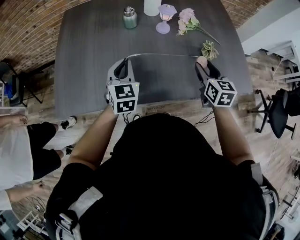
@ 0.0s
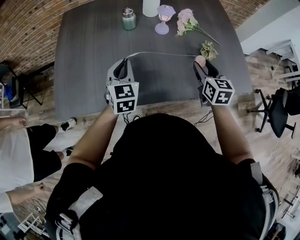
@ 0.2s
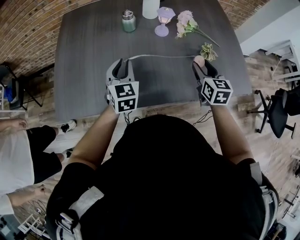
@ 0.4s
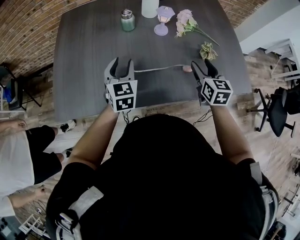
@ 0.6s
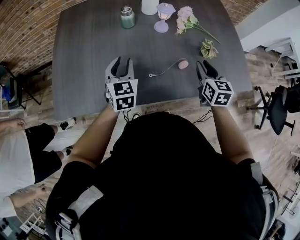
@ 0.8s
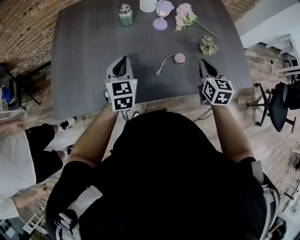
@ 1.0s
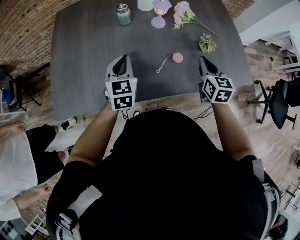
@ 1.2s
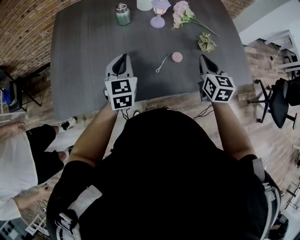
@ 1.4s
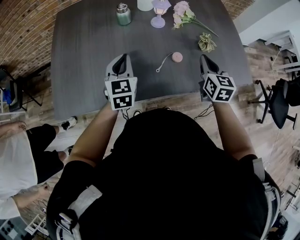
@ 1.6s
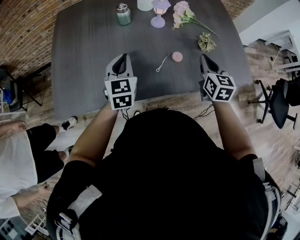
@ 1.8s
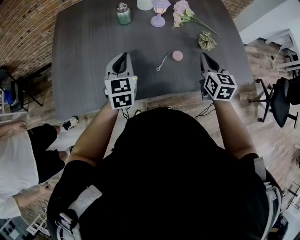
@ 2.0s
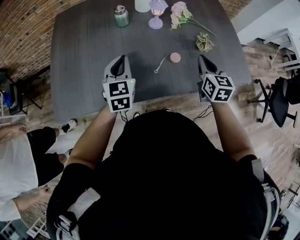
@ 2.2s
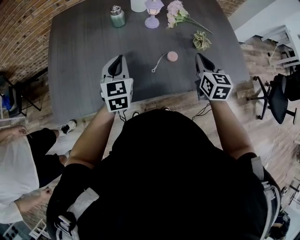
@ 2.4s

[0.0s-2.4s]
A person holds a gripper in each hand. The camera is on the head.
0.0s to 1.2s: The left gripper opens, then closes again; the right gripper closes up.
1.2s to 2.4s: The grippers make only small movements.

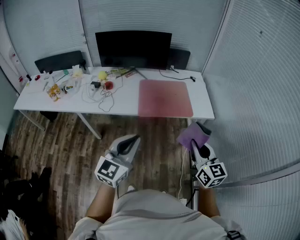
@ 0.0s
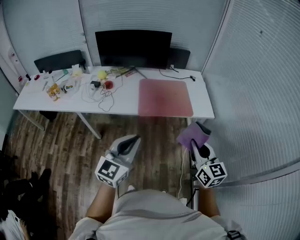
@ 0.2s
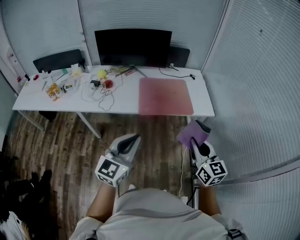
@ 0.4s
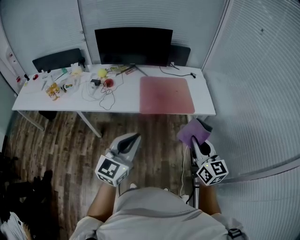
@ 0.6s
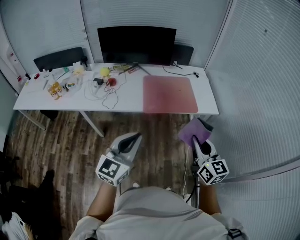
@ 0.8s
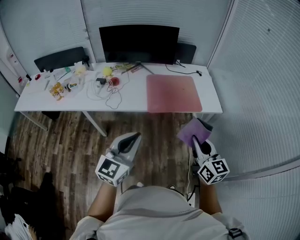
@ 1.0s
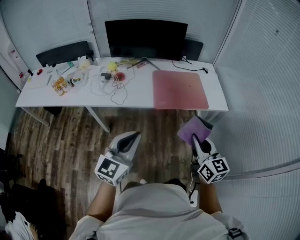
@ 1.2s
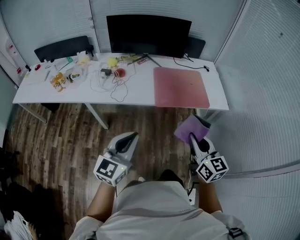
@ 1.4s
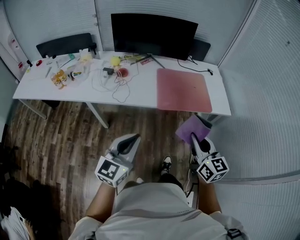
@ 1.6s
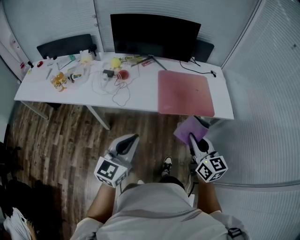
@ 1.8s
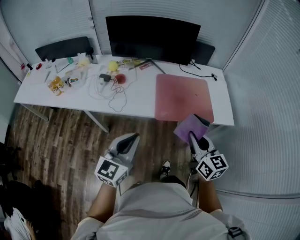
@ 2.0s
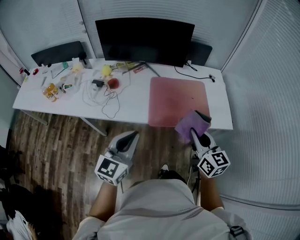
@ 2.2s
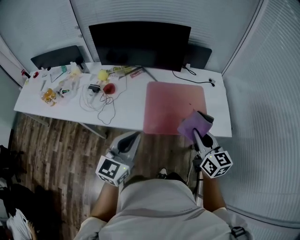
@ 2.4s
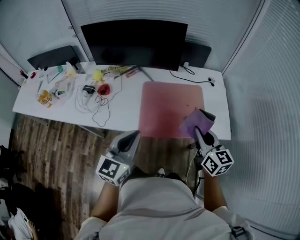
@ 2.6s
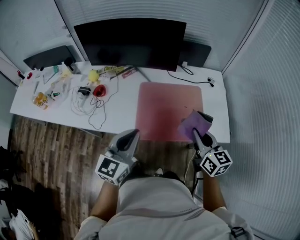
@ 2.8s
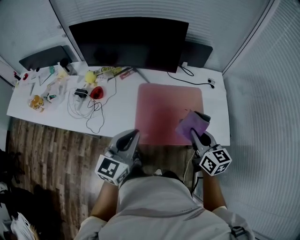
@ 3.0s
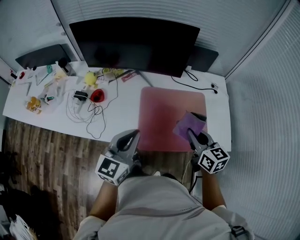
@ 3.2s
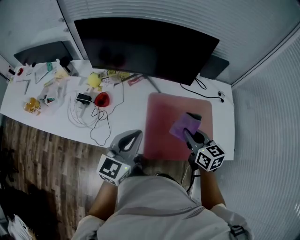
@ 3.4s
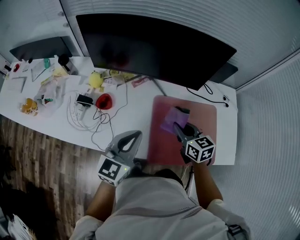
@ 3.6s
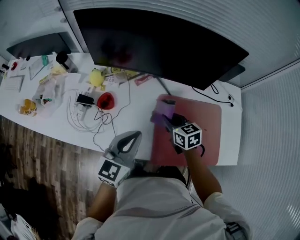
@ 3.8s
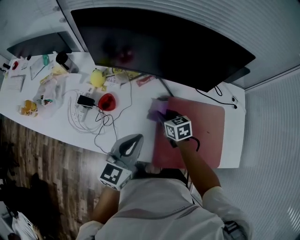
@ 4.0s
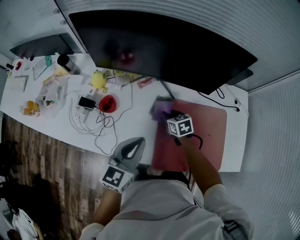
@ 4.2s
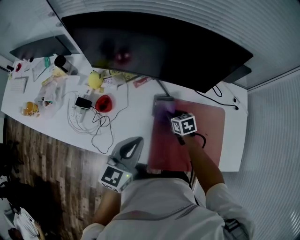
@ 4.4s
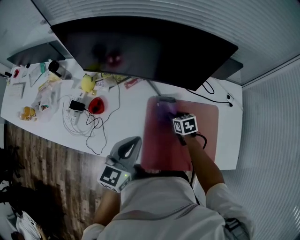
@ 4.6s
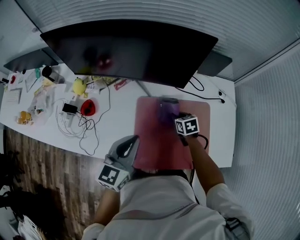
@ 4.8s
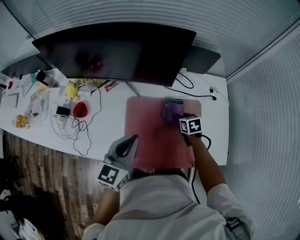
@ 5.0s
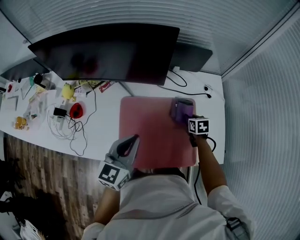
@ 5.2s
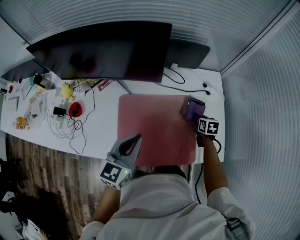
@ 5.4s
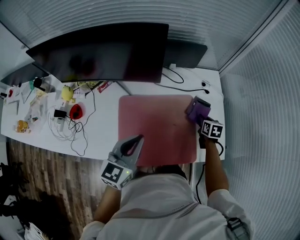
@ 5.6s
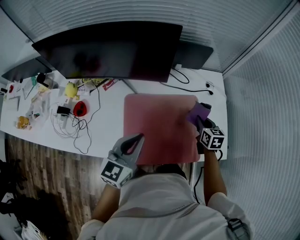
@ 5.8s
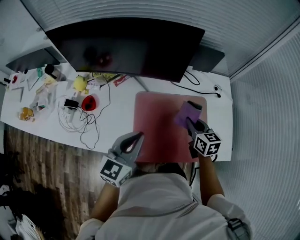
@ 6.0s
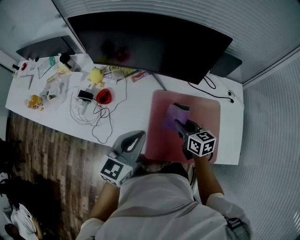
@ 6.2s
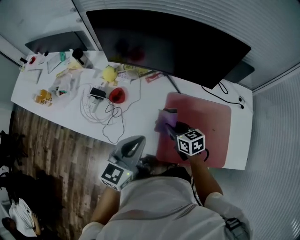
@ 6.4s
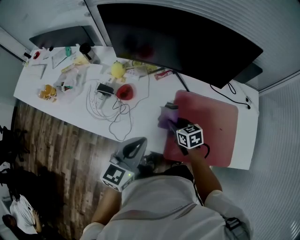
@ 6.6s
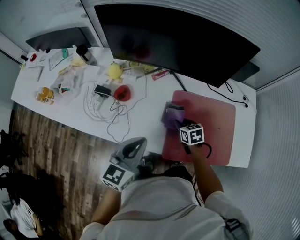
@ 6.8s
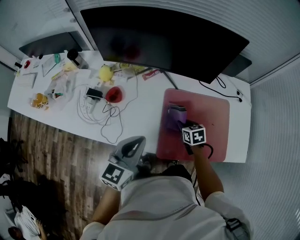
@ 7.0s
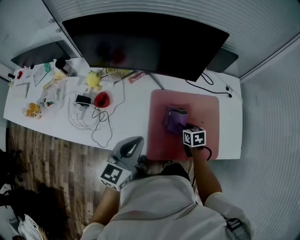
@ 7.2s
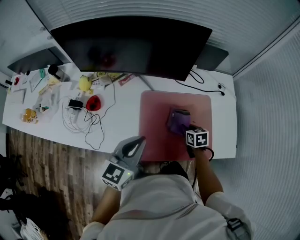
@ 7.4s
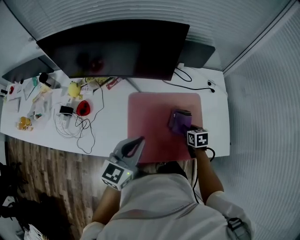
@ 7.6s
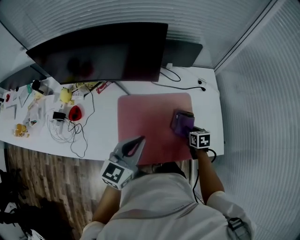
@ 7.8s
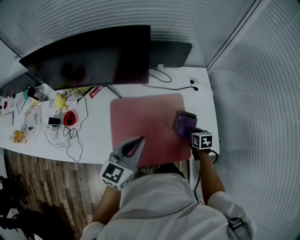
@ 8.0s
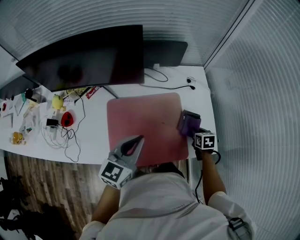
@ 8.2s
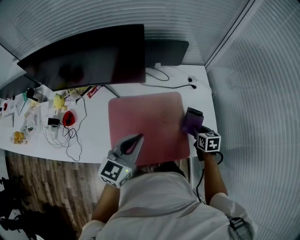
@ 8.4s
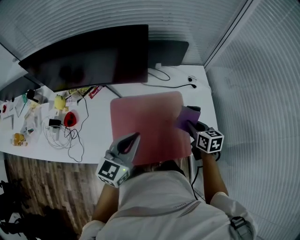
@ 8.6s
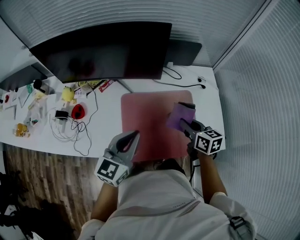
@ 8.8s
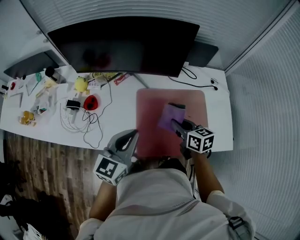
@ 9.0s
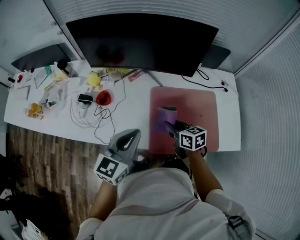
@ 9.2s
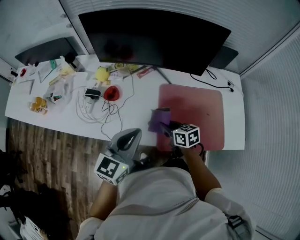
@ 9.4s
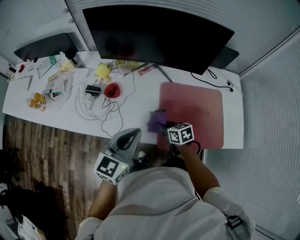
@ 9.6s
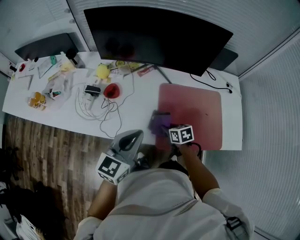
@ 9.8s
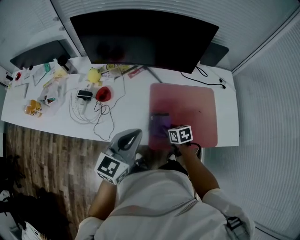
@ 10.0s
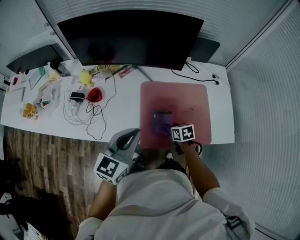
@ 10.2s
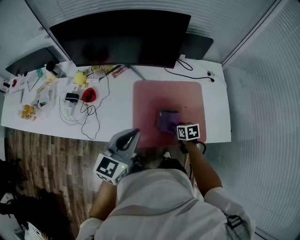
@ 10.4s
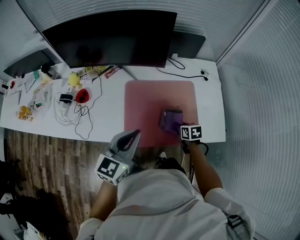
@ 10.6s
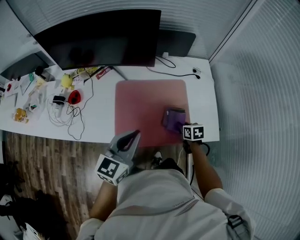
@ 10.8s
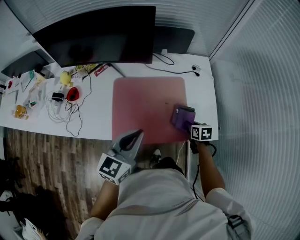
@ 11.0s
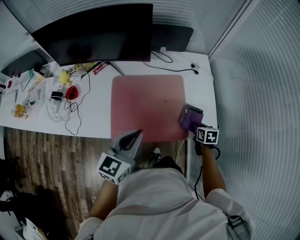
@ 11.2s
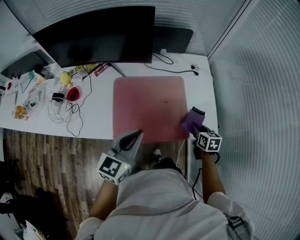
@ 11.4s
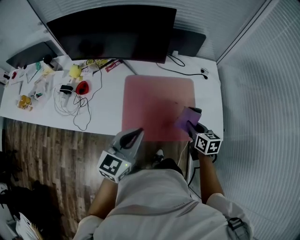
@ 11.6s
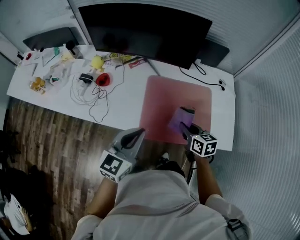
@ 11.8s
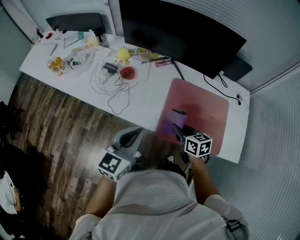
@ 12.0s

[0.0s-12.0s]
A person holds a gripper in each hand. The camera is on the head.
0.0s to 1.6s: The grippers both shift to the left by approximately 15 cm.
1.6s to 3.0s: The grippers both shift forward and to the right by about 40 cm.
3.0s to 4.4s: The left gripper travels forward and to the left by roughly 20 cm; the right gripper shifts approximately 40 cm forward, downward and to the left, and points its fingers some 30 degrees further downward.
4.4s to 6.0s: The left gripper is displaced to the right by some 10 cm. Meanwhile the right gripper goes roughly 25 cm to the right and upward, and rotates about 30 degrees.
6.0s to 7.6s: The right gripper travels downward by roughly 15 cm, reaches approximately 30 cm to the left, then returns, and rotates about 20 degrees. The left gripper reaches about 20 cm to the left, then returns.
7.6s to 9.0s: The right gripper is displaced upward and to the left by roughly 20 cm, and turns by approximately 30 degrees. Meanwhile the left gripper goes about 5 cm to the left.
9.0s to 10.4s: The left gripper travels backward by roughly 5 cm, and moves about 15 cm to the left and comes back. Meanwhile the right gripper travels downward by some 15 cm, reaches approximately 20 cm to the left, then returns, and changes its angle by about 20 degrees.
10.4s to 12.0s: The right gripper shifts by roughly 20 cm, and swivels about 30 degrees, while the left gripper ends up roughly 15 cm from where it was.

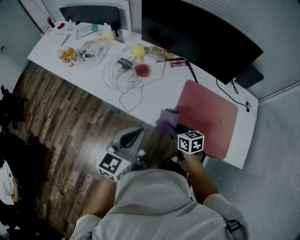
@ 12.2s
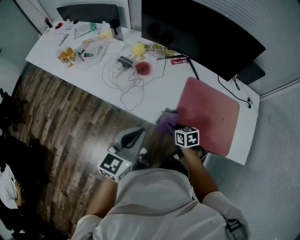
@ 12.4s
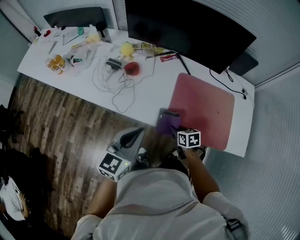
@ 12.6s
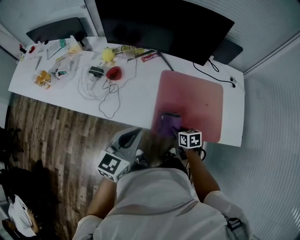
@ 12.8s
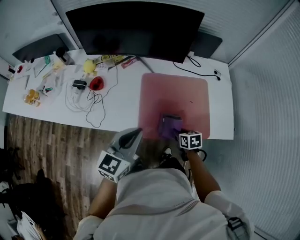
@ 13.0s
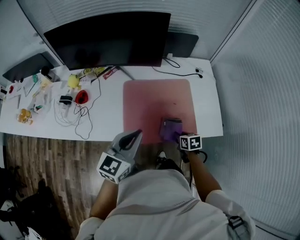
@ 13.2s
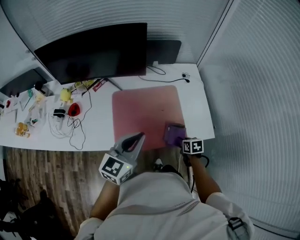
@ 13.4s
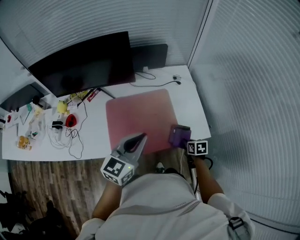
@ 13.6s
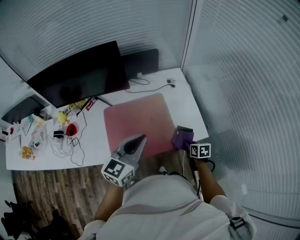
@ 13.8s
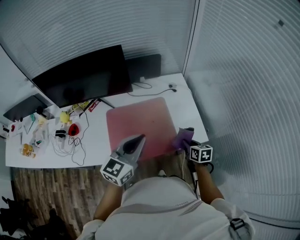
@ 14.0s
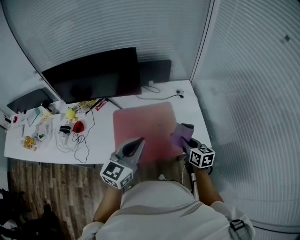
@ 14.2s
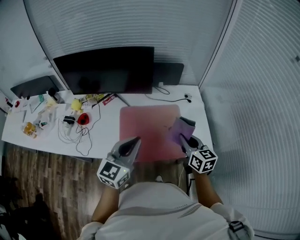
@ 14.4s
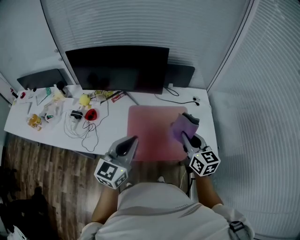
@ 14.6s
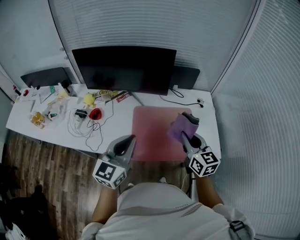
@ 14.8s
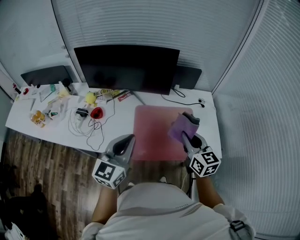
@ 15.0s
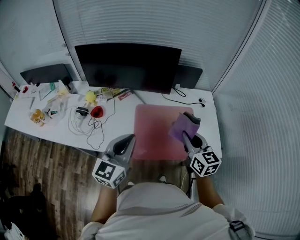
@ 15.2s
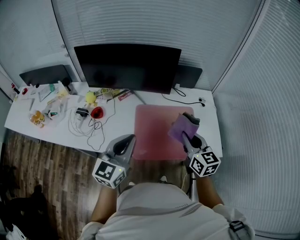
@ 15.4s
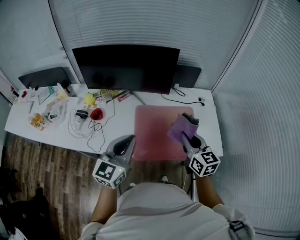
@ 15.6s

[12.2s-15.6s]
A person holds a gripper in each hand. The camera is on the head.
12.2s to 13.8s: The left gripper changes place by some 40 cm, and turns by approximately 40 degrees; the right gripper ends up some 50 cm from where it was, and changes its angle by roughly 50 degrees.
13.8s to 15.6s: The left gripper shifts some 25 cm to the left, and changes its angle by some 20 degrees. The right gripper goes some 40 cm upward and to the left, and tips its fingers upward by some 40 degrees.

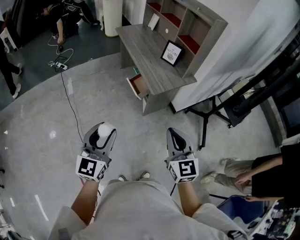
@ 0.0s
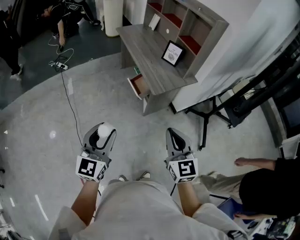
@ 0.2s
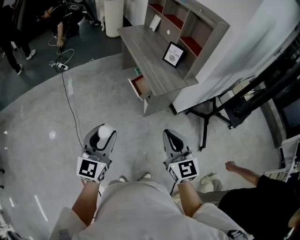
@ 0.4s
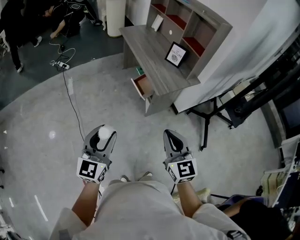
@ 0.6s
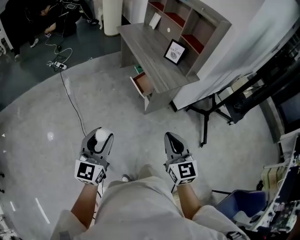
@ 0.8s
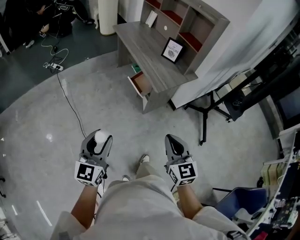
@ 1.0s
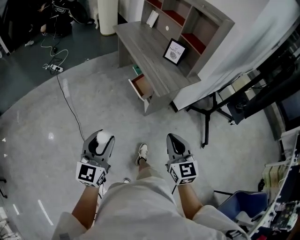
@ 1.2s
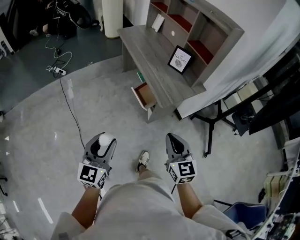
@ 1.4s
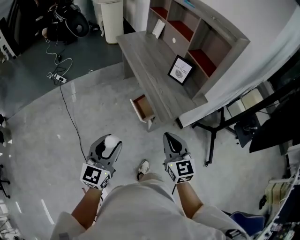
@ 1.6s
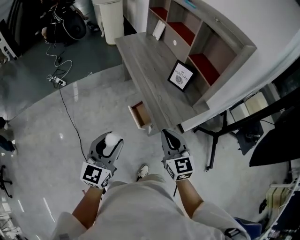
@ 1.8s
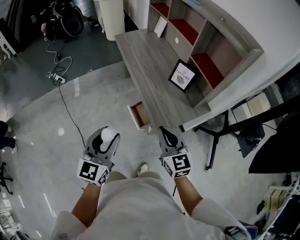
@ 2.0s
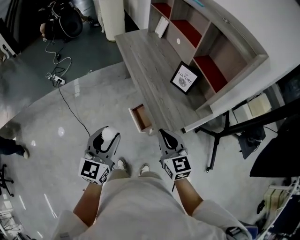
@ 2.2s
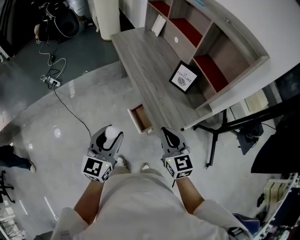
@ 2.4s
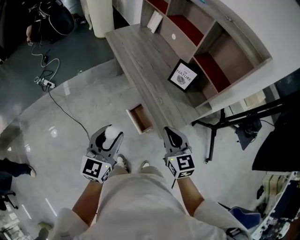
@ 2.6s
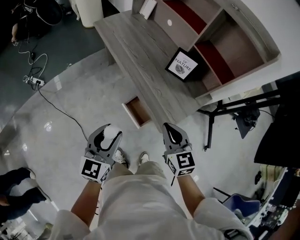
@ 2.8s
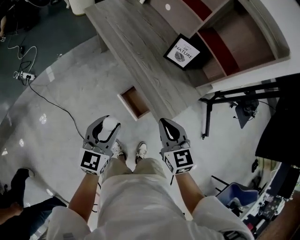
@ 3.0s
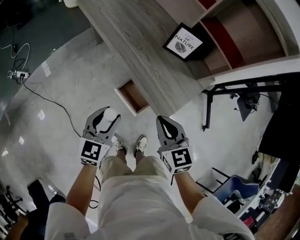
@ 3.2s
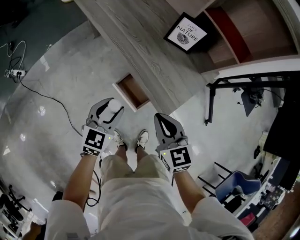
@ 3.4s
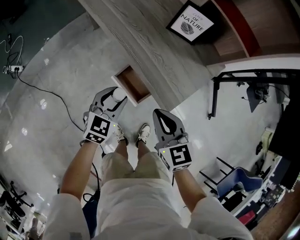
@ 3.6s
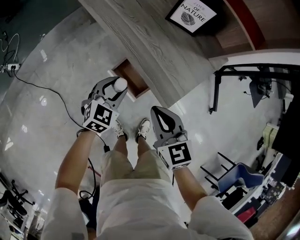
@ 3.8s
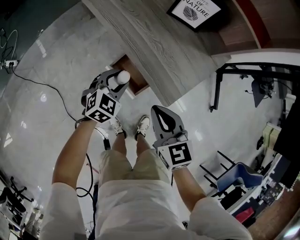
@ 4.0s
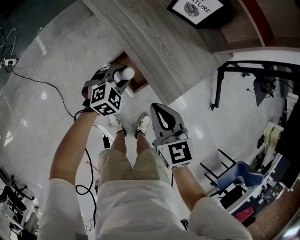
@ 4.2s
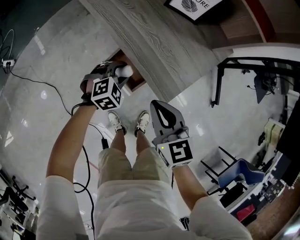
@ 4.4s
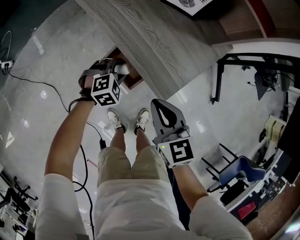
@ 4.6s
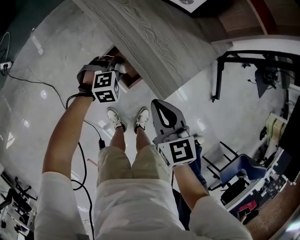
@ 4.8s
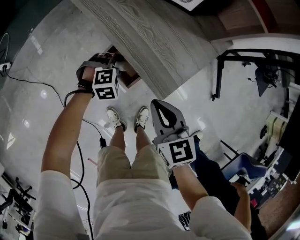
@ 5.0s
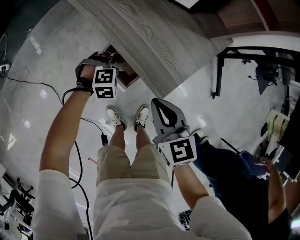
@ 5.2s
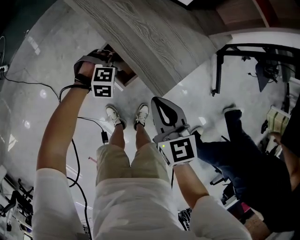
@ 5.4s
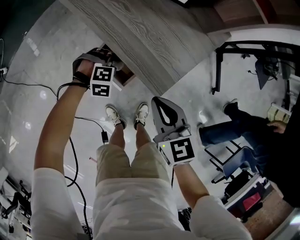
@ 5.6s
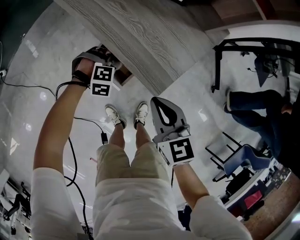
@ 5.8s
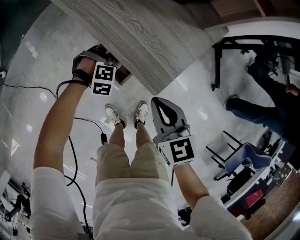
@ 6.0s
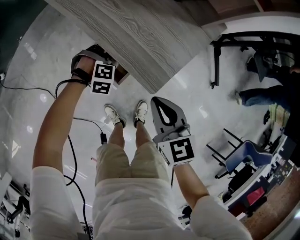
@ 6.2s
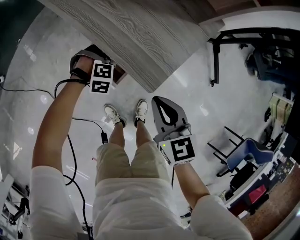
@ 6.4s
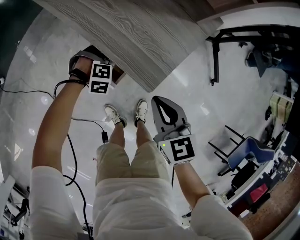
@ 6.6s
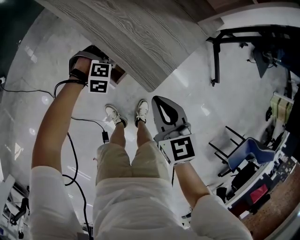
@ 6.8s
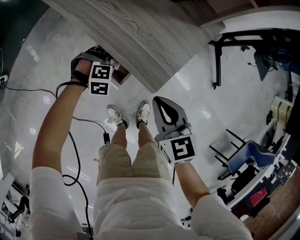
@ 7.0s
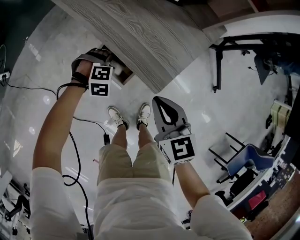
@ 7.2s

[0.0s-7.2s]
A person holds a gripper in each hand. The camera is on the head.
0.0s to 1.4s: The left gripper shifts approximately 15 cm forward, downward and to the left; the right gripper goes some 15 cm forward and downward.
1.4s to 2.8s: Both grippers travel together forward, about 30 cm.
2.8s to 4.4s: The right gripper heads downward, covering about 15 cm, while the left gripper moves downward, roughly 35 cm, and tips its fingers downward by about 40 degrees.
4.4s to 5.8s: The right gripper moves about 5 cm; the left gripper goes approximately 5 cm downward, and changes its angle by roughly 40 degrees.
5.8s to 7.2s: The grippers stay close to where they were, moving slightly.
